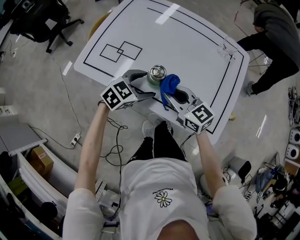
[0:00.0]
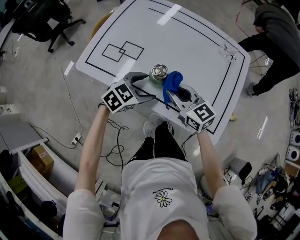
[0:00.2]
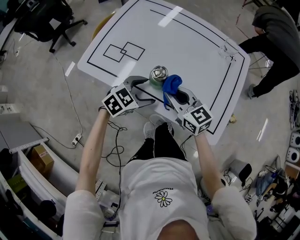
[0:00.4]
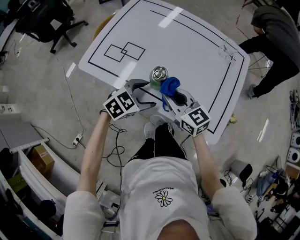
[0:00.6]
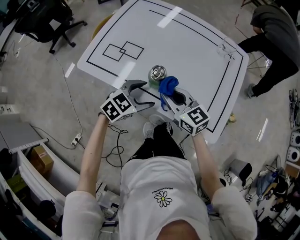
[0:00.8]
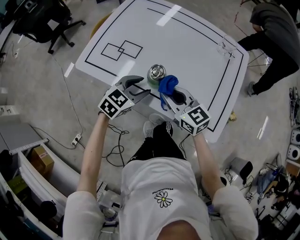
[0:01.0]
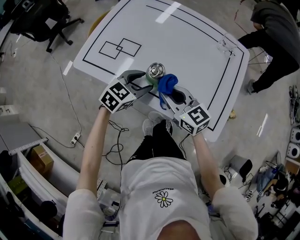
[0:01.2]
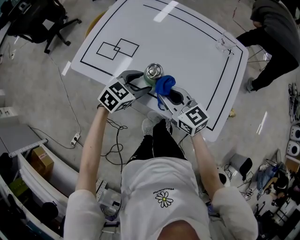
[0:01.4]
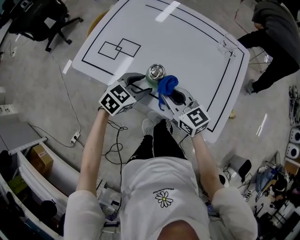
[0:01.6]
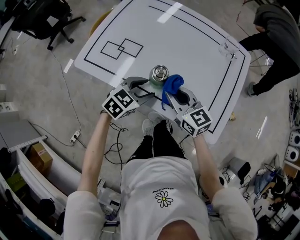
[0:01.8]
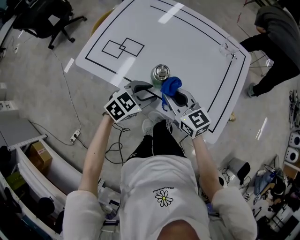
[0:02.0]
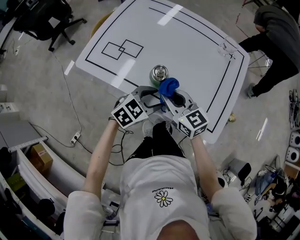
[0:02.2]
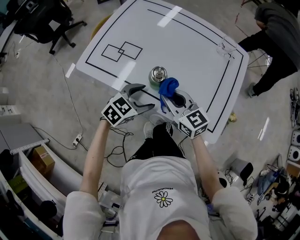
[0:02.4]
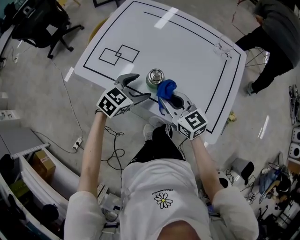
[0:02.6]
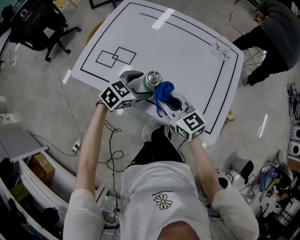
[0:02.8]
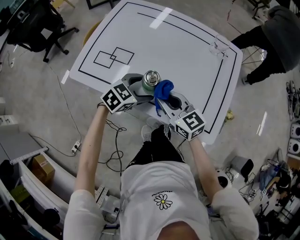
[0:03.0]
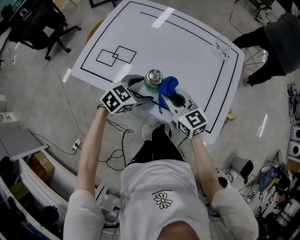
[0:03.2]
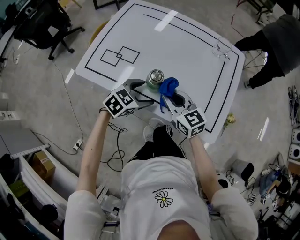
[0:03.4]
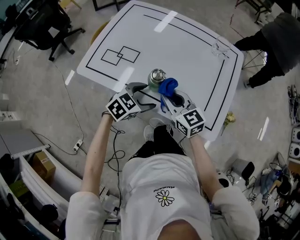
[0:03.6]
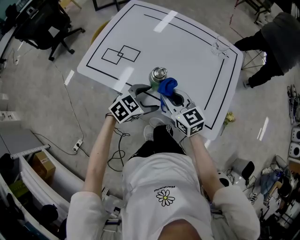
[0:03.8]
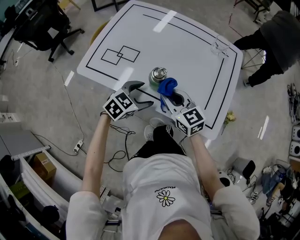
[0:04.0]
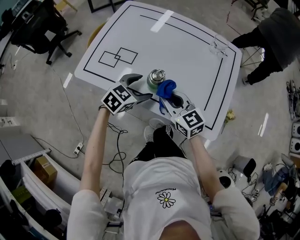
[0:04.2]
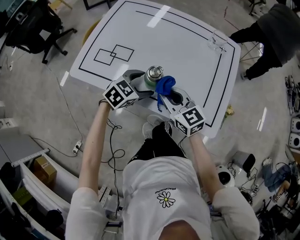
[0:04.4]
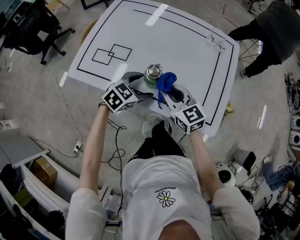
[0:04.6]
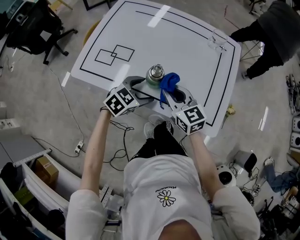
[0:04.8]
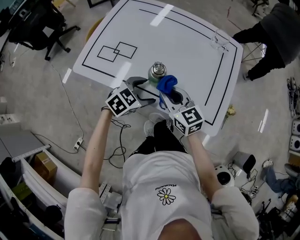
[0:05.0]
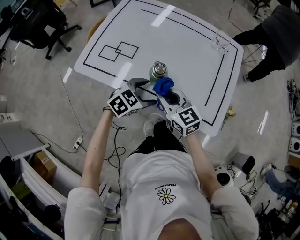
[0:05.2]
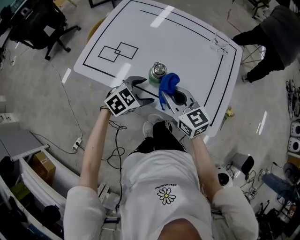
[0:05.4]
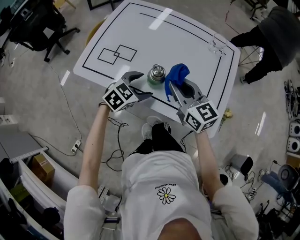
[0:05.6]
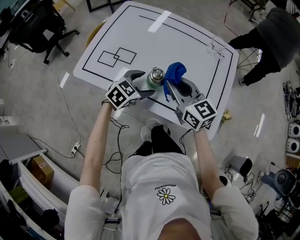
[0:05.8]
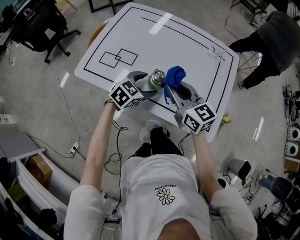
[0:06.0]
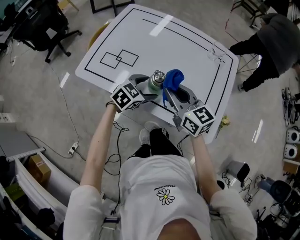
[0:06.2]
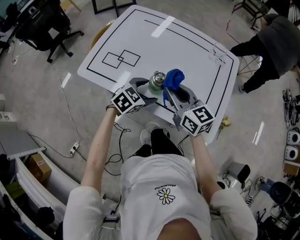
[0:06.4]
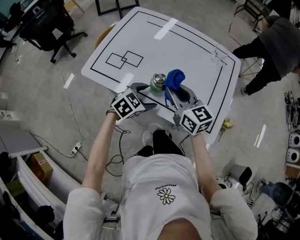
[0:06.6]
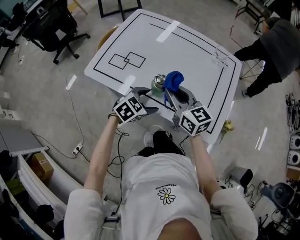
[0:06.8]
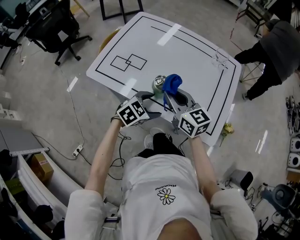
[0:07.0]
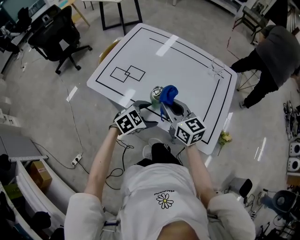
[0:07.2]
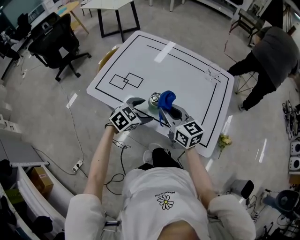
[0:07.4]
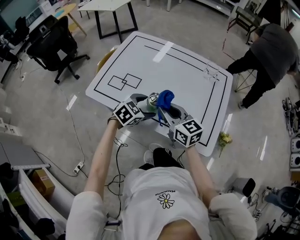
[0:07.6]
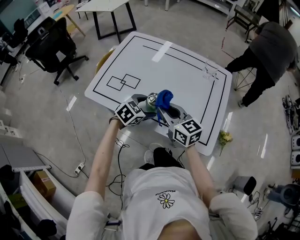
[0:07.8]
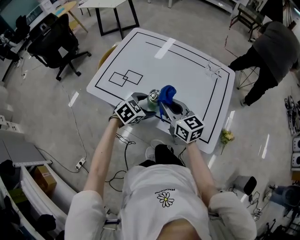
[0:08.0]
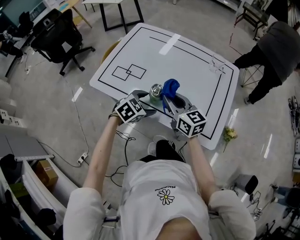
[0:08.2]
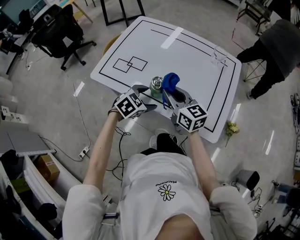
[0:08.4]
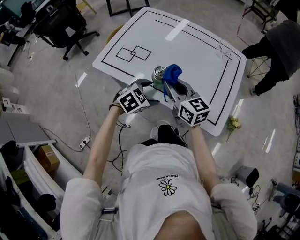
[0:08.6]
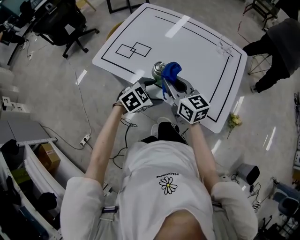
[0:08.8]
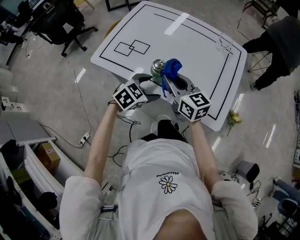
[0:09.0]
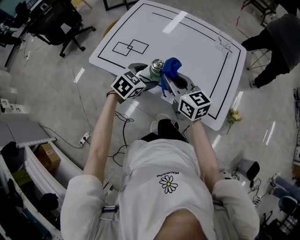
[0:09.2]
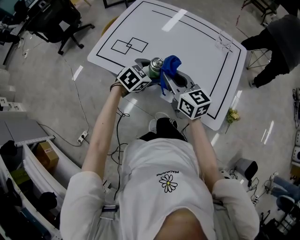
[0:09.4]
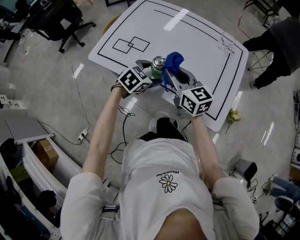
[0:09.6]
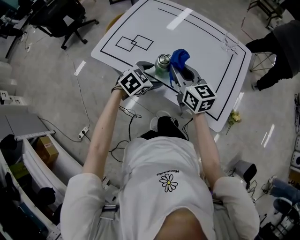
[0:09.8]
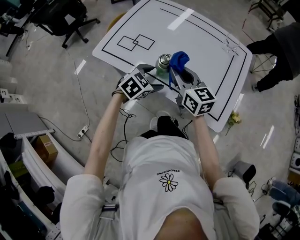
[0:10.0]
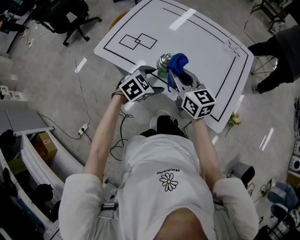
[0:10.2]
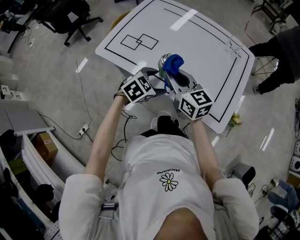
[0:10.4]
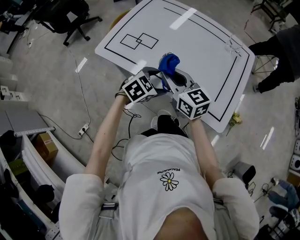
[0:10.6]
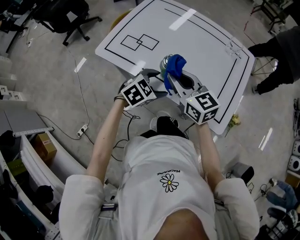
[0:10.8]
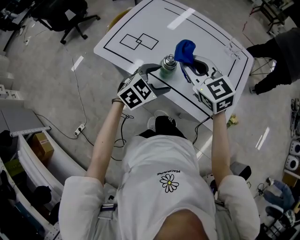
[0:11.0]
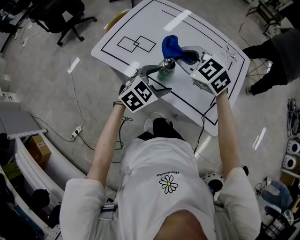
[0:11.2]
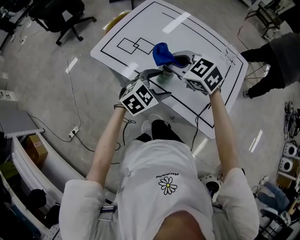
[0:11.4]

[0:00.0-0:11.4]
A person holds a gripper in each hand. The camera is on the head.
0:00.0 to 0:01.4: The grippers make only small movements.
0:04.2 to 0:05.6: The right gripper heads upward, covering approximately 5 cm.
0:05.6 to 0:07.2: The left gripper heads backward, covering approximately 5 cm.
0:10.0 to 0:11.4: The left gripper moves upward, roughly 5 cm. Meanwhile the right gripper goes roughly 5 cm to the left, and changes its angle by about 50 degrees.

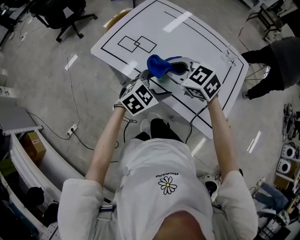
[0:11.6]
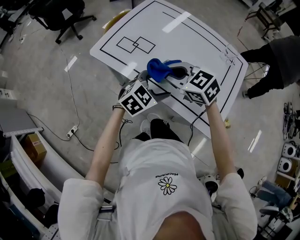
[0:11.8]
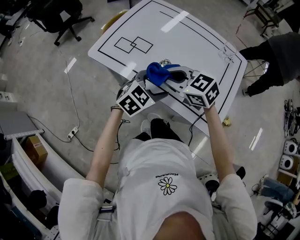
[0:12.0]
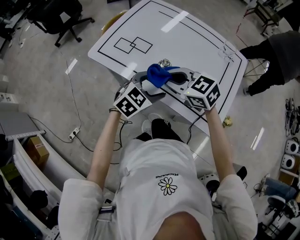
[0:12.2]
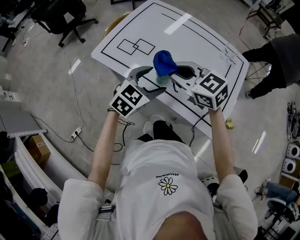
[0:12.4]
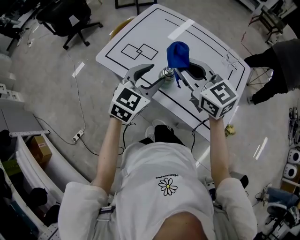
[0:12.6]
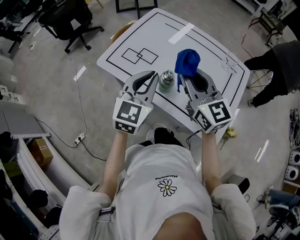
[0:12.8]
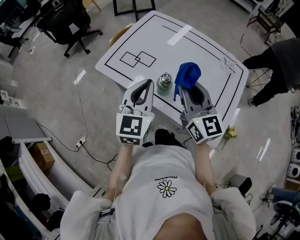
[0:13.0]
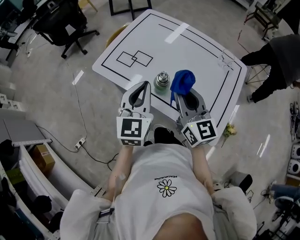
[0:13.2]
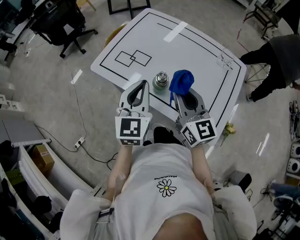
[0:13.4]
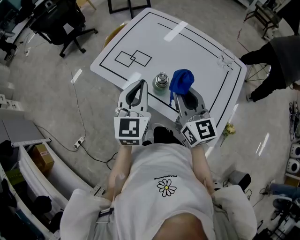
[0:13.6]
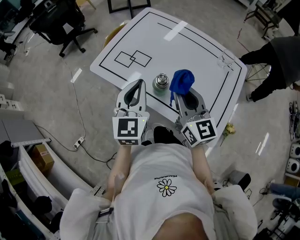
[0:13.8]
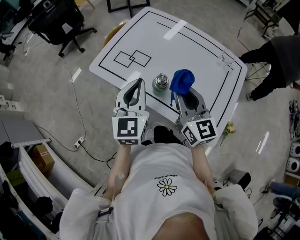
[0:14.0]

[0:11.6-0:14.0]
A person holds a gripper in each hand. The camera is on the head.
0:11.6 to 0:12.8: The left gripper heads upward and to the left, covering roughly 15 cm, rotates some 40 degrees, and closes; the right gripper heads upward and to the right, covering approximately 15 cm, and tilts its fingers roughly 40 degrees upward.
0:12.8 to 0:14.0: The right gripper travels downward by roughly 5 cm.

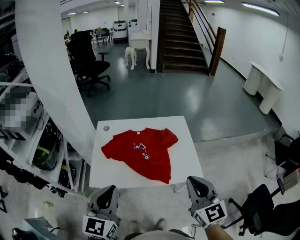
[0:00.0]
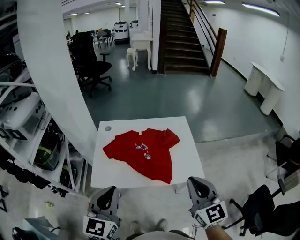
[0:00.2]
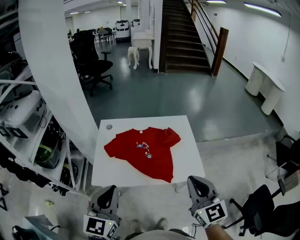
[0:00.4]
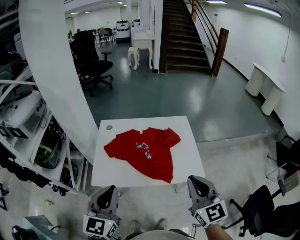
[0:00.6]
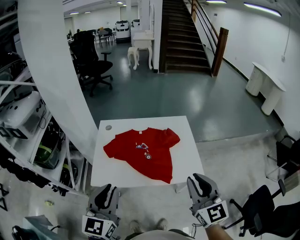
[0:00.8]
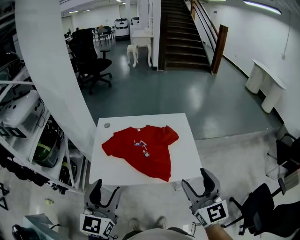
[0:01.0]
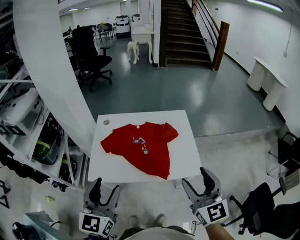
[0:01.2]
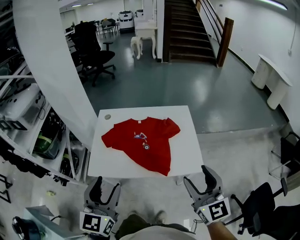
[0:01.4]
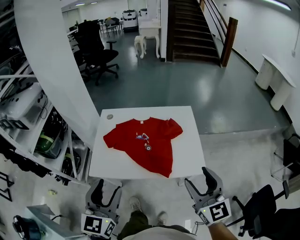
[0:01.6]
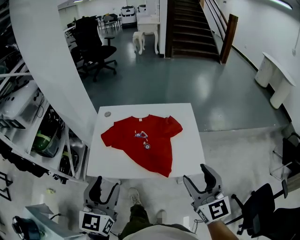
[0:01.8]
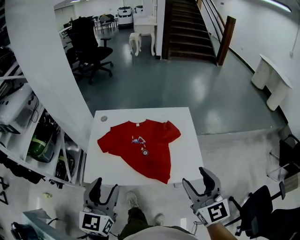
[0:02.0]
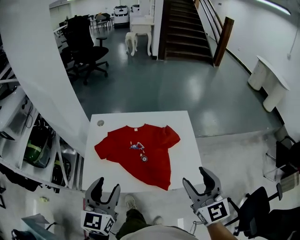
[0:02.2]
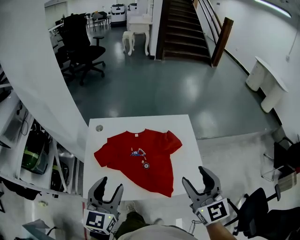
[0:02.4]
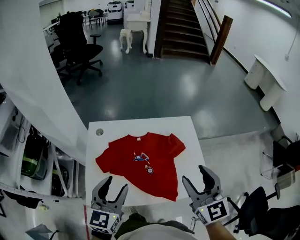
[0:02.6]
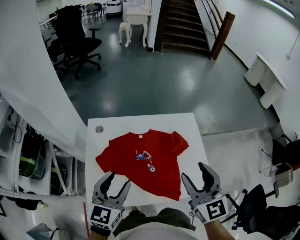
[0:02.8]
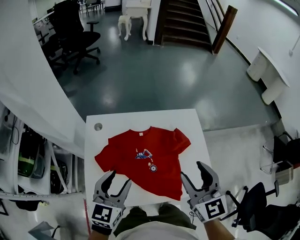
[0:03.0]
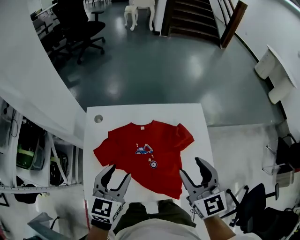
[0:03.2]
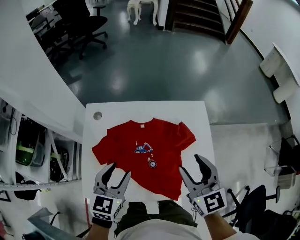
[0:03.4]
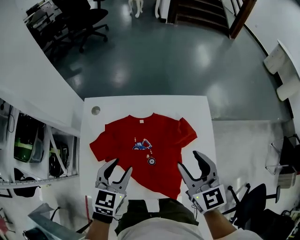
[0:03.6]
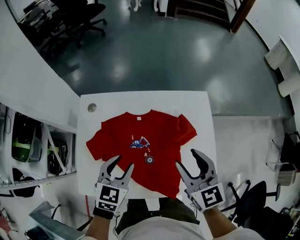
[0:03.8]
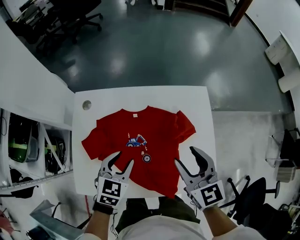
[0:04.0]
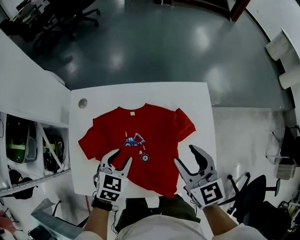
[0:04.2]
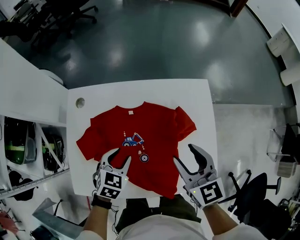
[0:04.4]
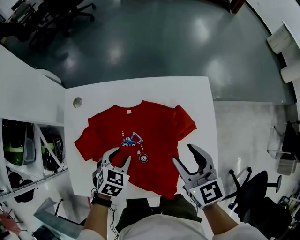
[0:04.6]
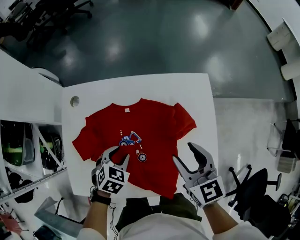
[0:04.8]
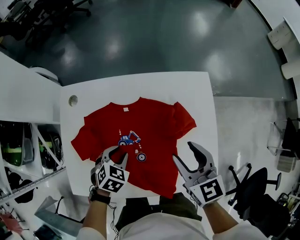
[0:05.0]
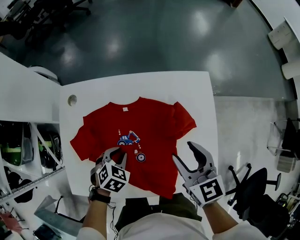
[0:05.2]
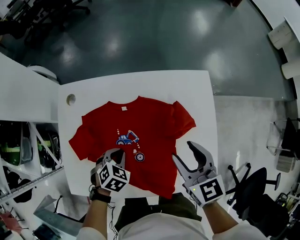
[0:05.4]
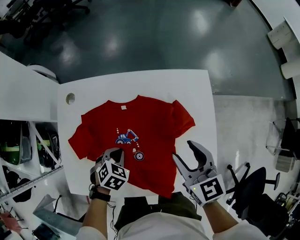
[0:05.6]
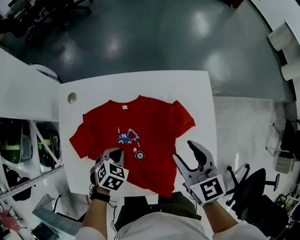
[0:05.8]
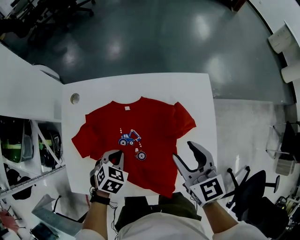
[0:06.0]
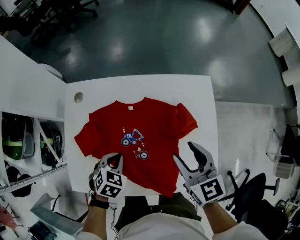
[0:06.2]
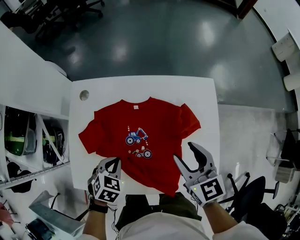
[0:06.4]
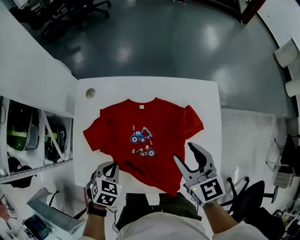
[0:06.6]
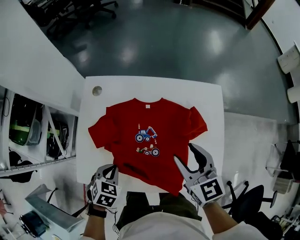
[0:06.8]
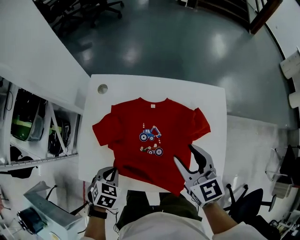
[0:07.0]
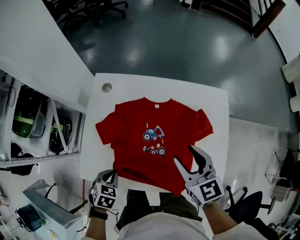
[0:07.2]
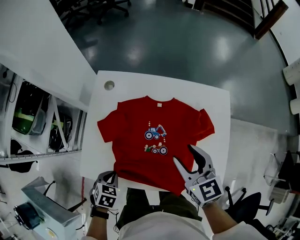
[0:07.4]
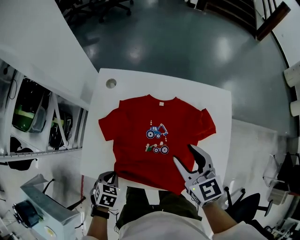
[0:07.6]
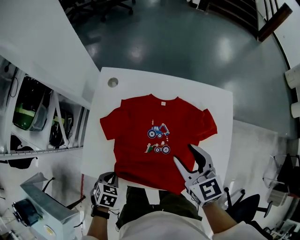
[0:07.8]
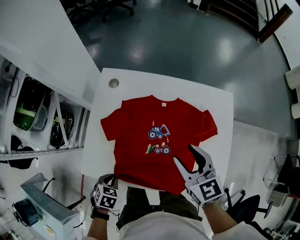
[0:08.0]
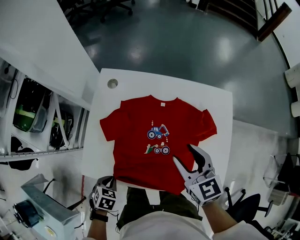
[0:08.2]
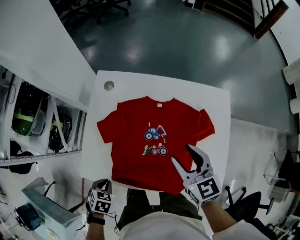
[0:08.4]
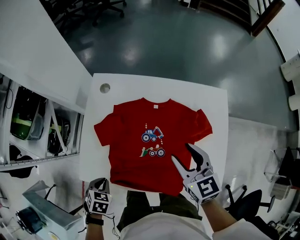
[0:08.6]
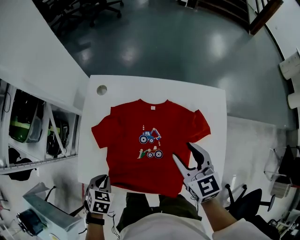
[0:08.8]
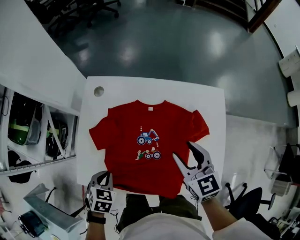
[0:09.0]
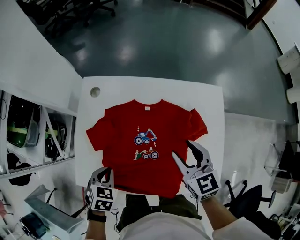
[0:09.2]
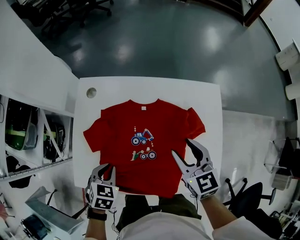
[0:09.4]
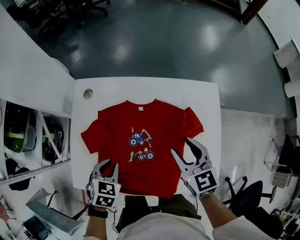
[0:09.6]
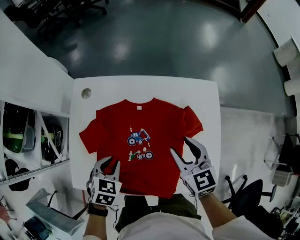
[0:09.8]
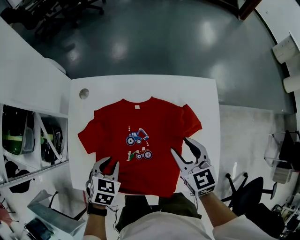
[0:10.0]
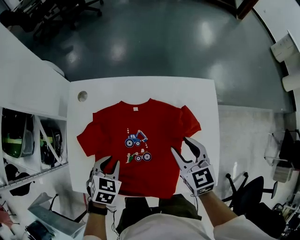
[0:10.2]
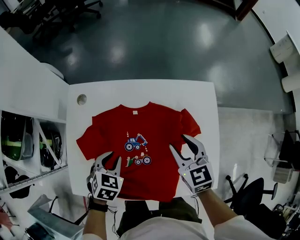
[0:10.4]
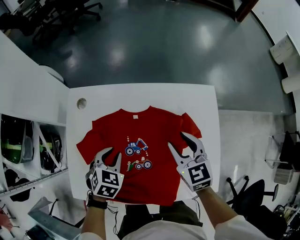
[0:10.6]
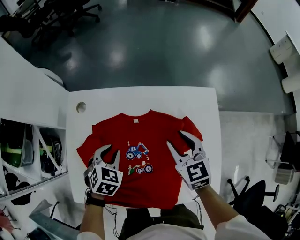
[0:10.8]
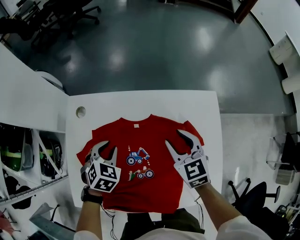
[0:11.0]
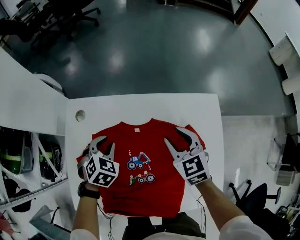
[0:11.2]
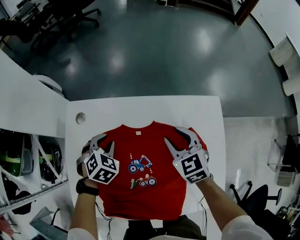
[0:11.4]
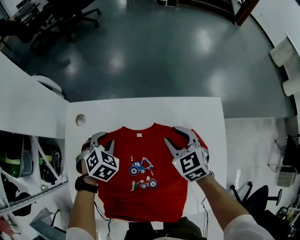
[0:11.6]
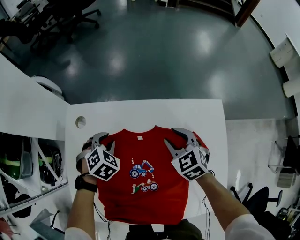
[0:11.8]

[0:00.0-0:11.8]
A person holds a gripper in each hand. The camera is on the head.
0:00.0 to 0:01.4: The right gripper opens up. The left gripper opens its fingers.
0:01.4 to 0:03.0: The right gripper moves forward and to the left, about 25 cm, while the left gripper moves forward, some 25 cm.
0:03.0 to 0:04.4: Both grippers move downward and forward, about 20 cm. The right gripper changes its angle by about 20 degrees. Meanwhile the left gripper tips its fingers downward by about 30 degrees.
0:04.4 to 0:06.0: The left gripper moves downward, roughly 5 cm, and closes.
0:06.0 to 0:07.4: The left gripper shifts some 20 cm to the left and backward, and rotates about 20 degrees. Meanwhile the right gripper goes approximately 10 cm to the left.
0:07.4 to 0:08.8: The grippers make only small movements.
0:08.8 to 0:10.4: The right gripper travels to the right and downward by approximately 10 cm; the left gripper travels forward and to the right by some 20 cm.
0:10.4 to 0:11.8: The right gripper moves forward and downward, approximately 15 cm, and turns by approximately 20 degrees, while the left gripper heads forward, covering approximately 20 cm, and swivels some 20 degrees.
